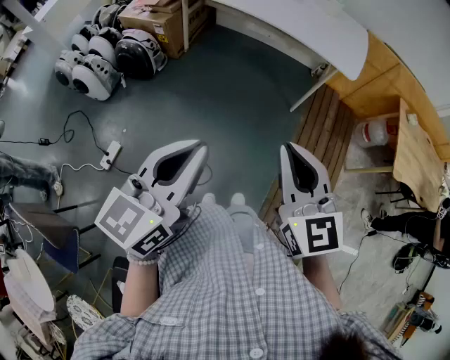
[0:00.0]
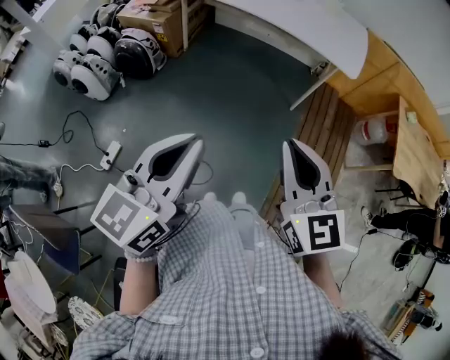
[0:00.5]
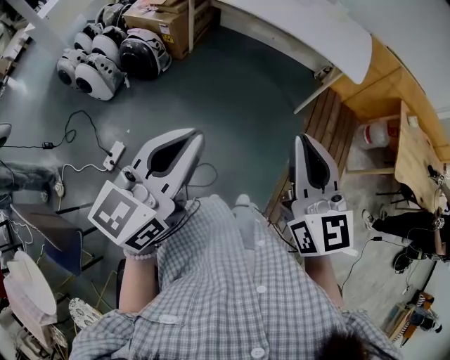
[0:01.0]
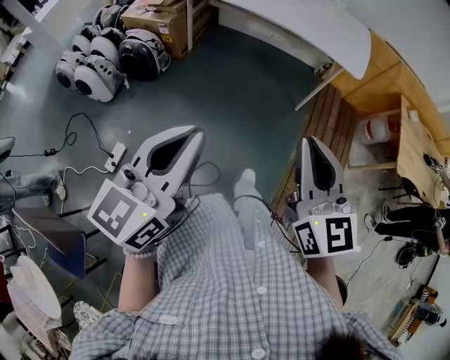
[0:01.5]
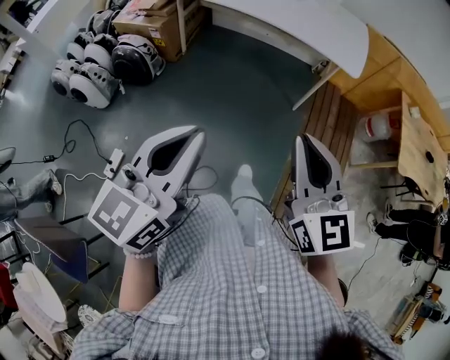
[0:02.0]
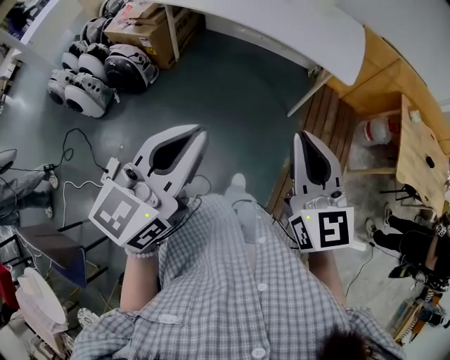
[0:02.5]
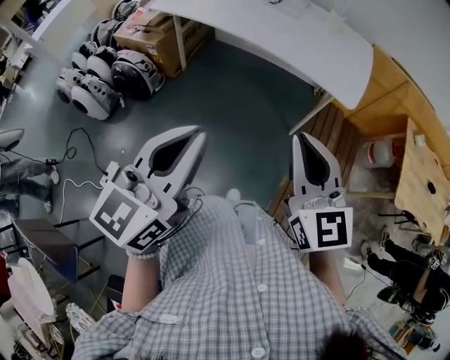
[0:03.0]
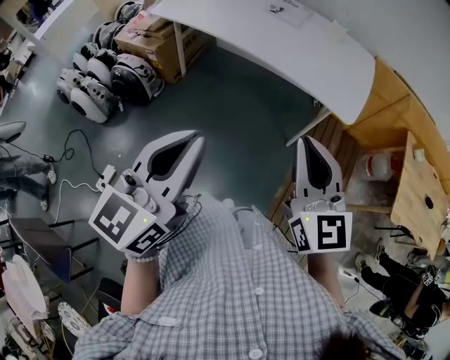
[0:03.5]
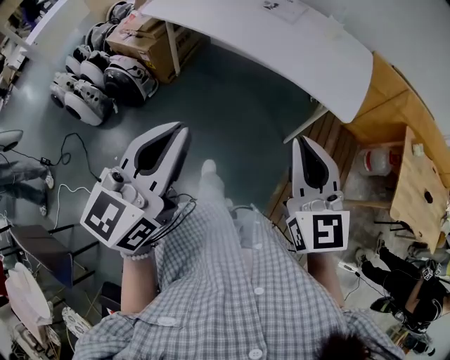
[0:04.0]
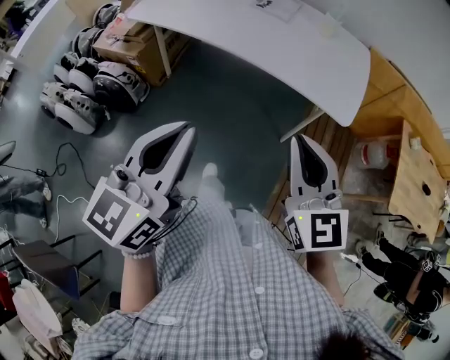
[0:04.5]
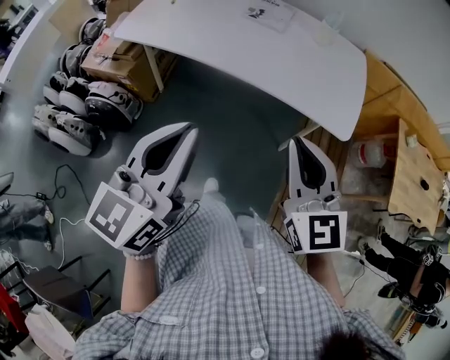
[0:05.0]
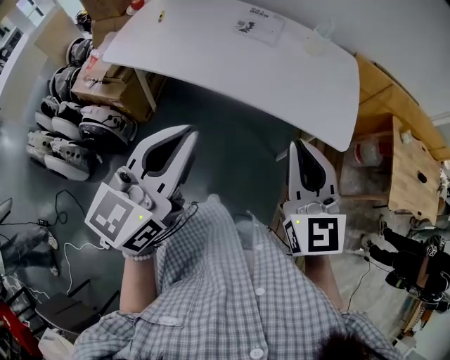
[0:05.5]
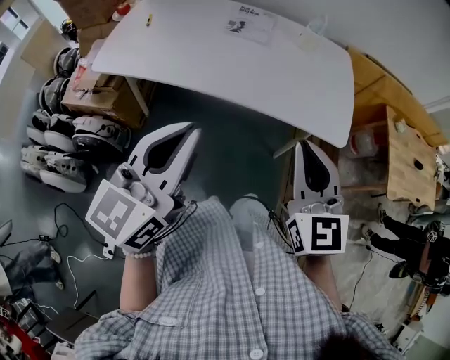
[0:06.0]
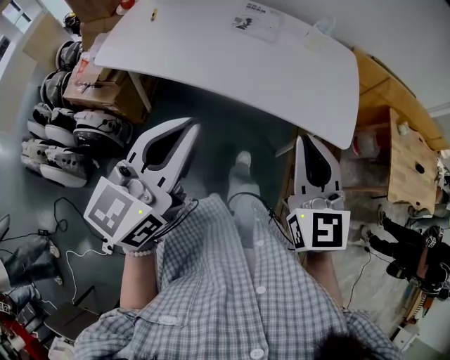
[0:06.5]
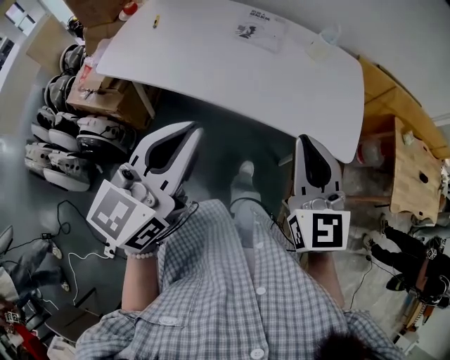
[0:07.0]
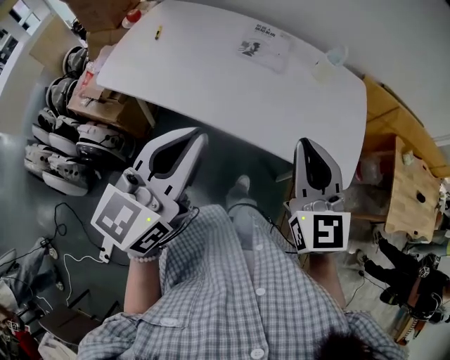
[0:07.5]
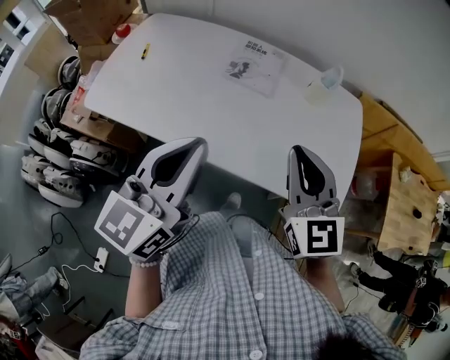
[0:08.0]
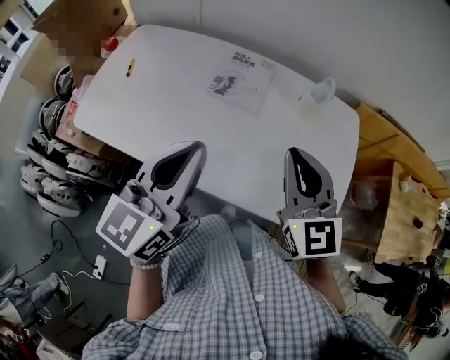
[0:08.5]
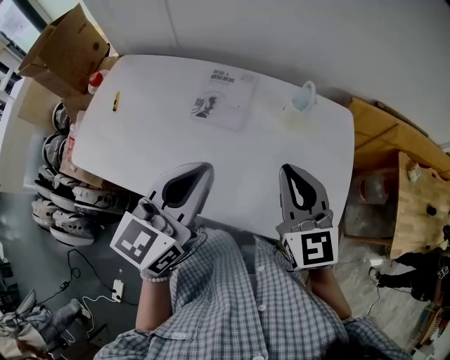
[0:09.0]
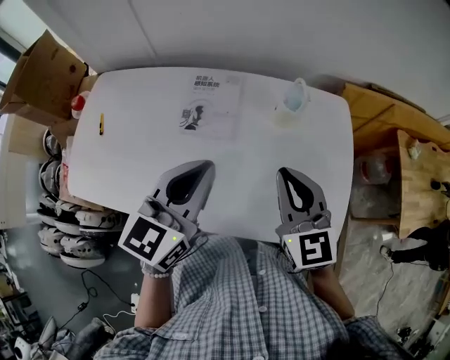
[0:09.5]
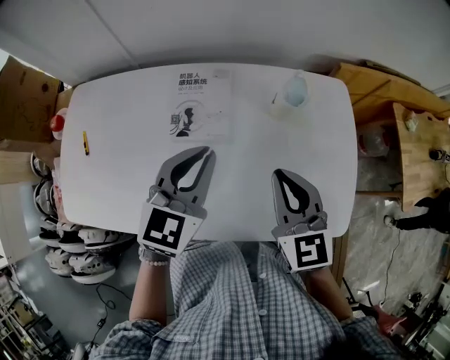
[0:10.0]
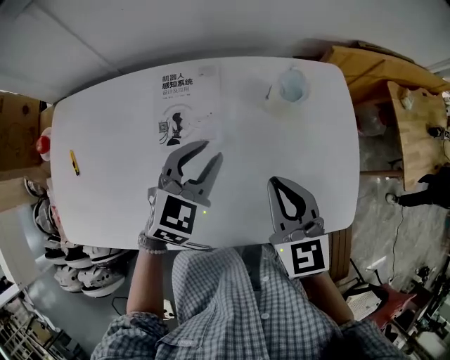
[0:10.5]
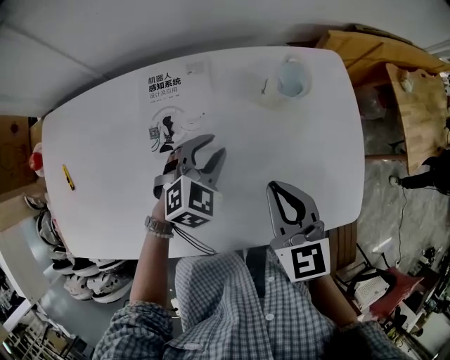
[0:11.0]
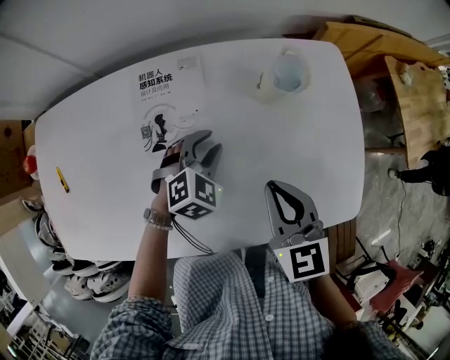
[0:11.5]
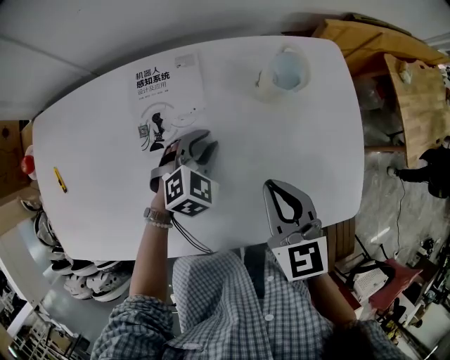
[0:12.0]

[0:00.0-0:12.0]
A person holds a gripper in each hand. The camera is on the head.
2.0 to 4.0 s: The left gripper heads forward, covering approximately 20 cm, while the right gripper is displaced forward and to the right by some 25 cm.
4.0 to 6.0 s: The right gripper is displaced forward and to the left by approximately 20 cm. Meanwhile the left gripper shifts about 25 cm forward.
6.0 to 8.0 s: The two grippers go some 20 cm forward.
8.0 to 10.0 s: The right gripper moves forward and downward, some 20 cm, and changes its angle by roughly 20 degrees. The left gripper travels forward and downward by roughly 30 cm, and changes its angle by some 30 degrees.
10.0 to 12.0 s: The left gripper shifts roughly 20 cm downward, swivels approximately 40 degrees, and opens its fingers. The right gripper heads downward, covering roughly 10 cm.

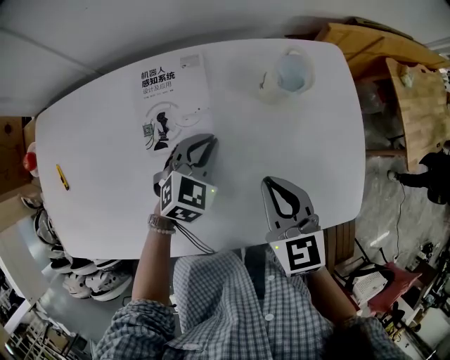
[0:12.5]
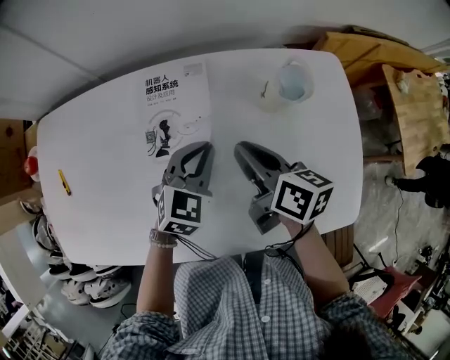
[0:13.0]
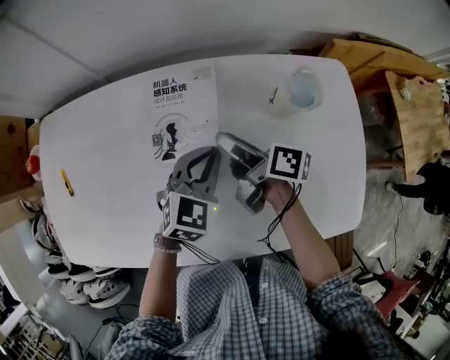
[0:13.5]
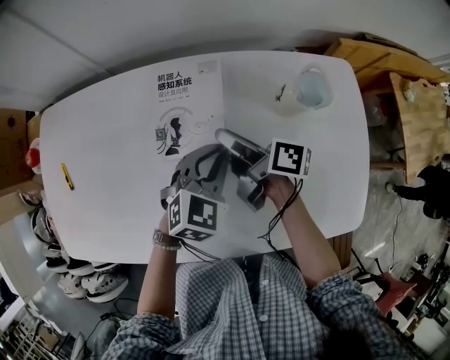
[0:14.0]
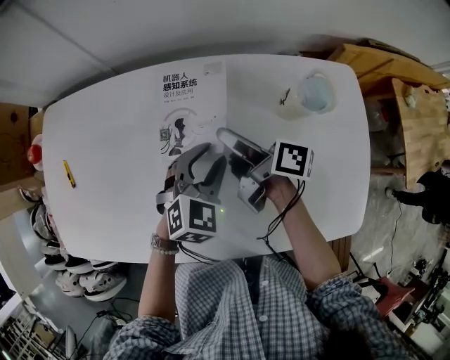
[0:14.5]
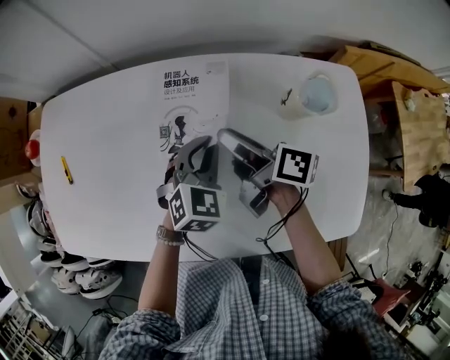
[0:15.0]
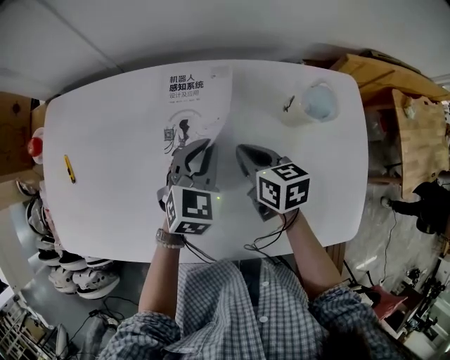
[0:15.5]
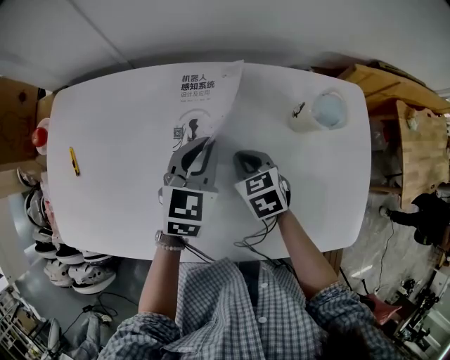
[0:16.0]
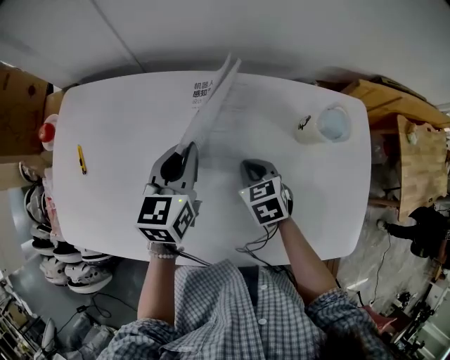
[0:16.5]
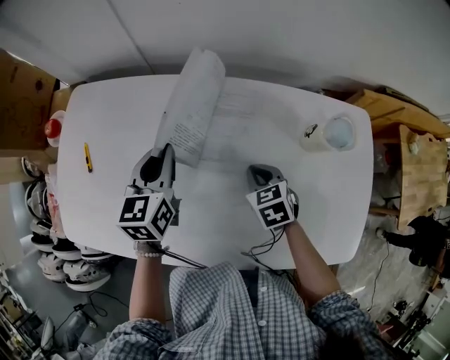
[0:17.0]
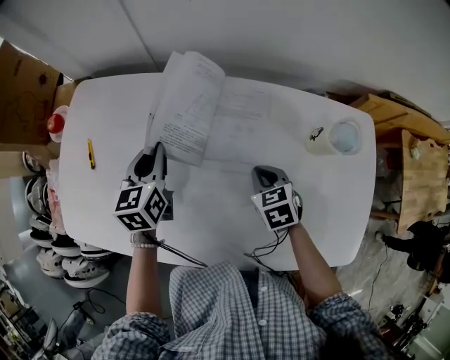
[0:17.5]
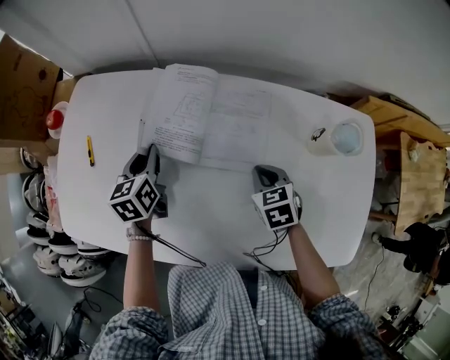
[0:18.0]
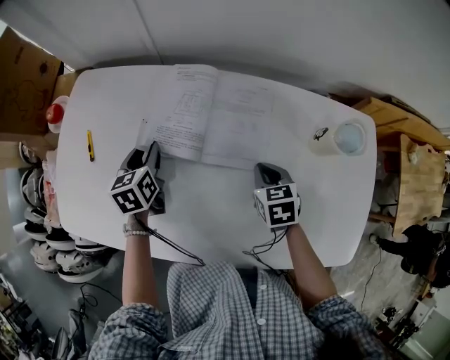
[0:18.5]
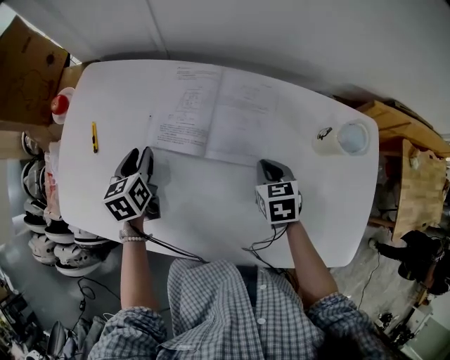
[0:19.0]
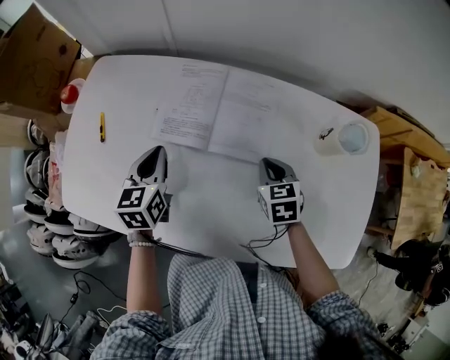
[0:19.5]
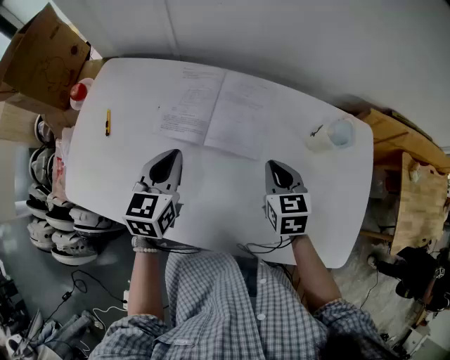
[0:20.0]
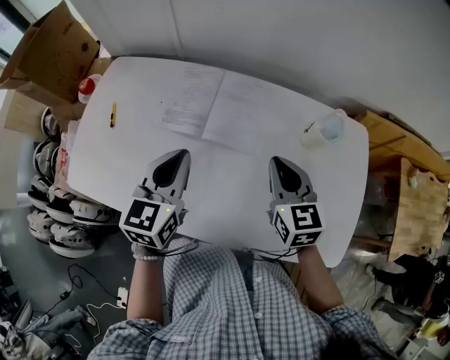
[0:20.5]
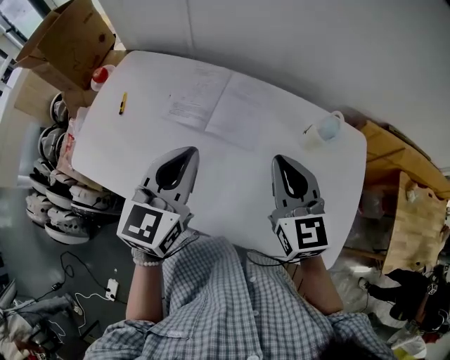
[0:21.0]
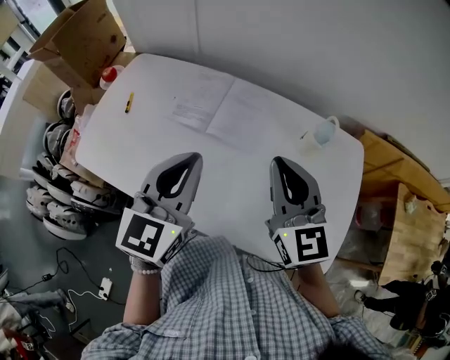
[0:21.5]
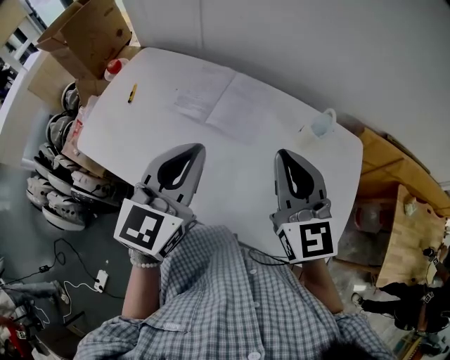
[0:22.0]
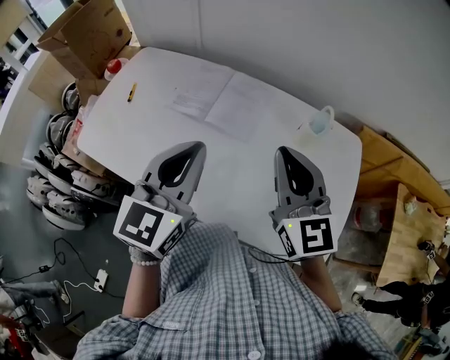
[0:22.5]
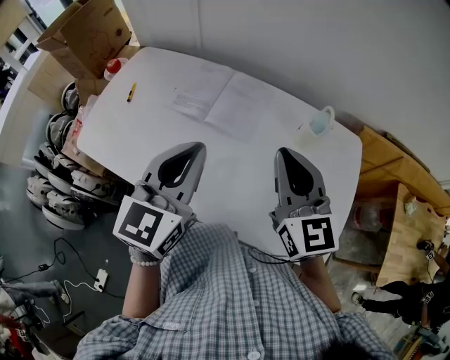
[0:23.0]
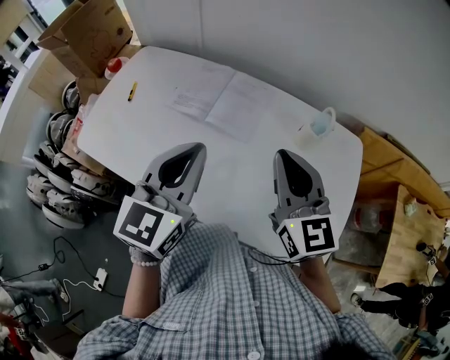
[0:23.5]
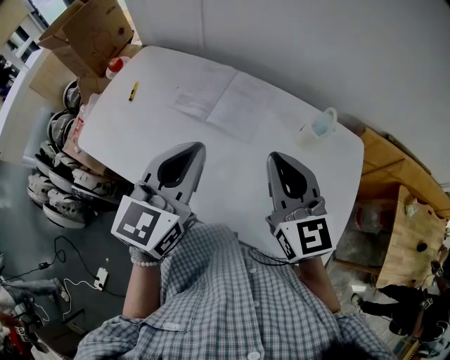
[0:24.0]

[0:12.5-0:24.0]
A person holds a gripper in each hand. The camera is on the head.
12.5 to 14.5 s: The right gripper travels forward, to the left and downward by roughly 20 cm, twists roughly 70 degrees clockwise, seen from behind, and opens its fingers; the left gripper opens.
14.5 to 16.5 s: The left gripper heads to the left, upward and forward, covering roughly 15 cm, rolls counterclockwise, seen from behind, by approximately 40 degrees, and closes up; the right gripper shifts approximately 5 cm downward, rolls counterclockwise, seen from behind, by roughly 70 degrees, and closes.
16.5 to 18.5 s: The left gripper moves to the left and downward, about 20 cm, rotates approximately 30 degrees, and opens up.
18.5 to 20.0 s: The right gripper heads upward, covering roughly 10 cm; the left gripper moves upward, backward and to the right, roughly 15 cm, changes its angle by approximately 20 degrees, and closes.
20.0 to 22.0 s: The left gripper is displaced upward, backward and to the right by roughly 25 cm, and changes its angle by roughly 20 degrees; the right gripper heads upward and backward, covering approximately 25 cm, and tips its fingers upward by some 30 degrees.
22.0 to 24.0 s: The grippers make only small movements.

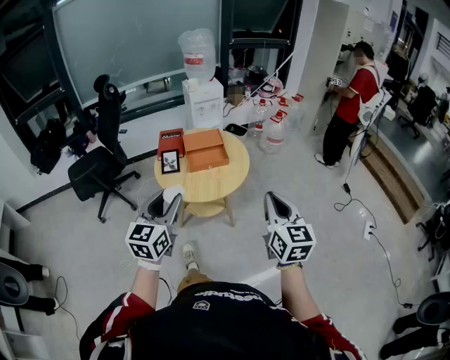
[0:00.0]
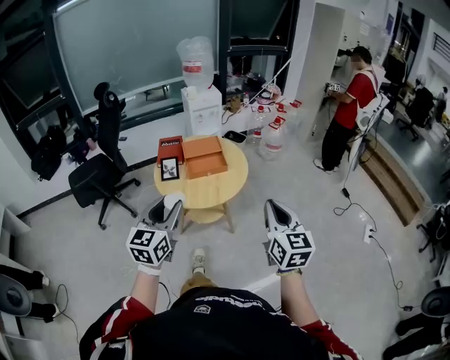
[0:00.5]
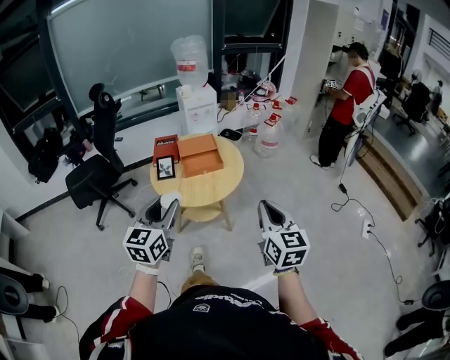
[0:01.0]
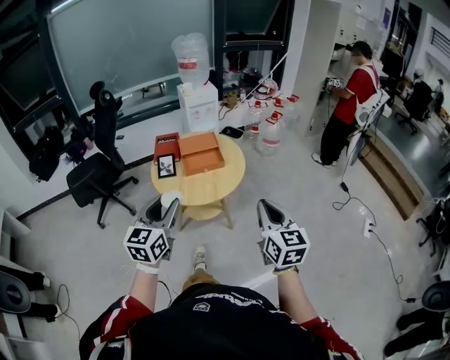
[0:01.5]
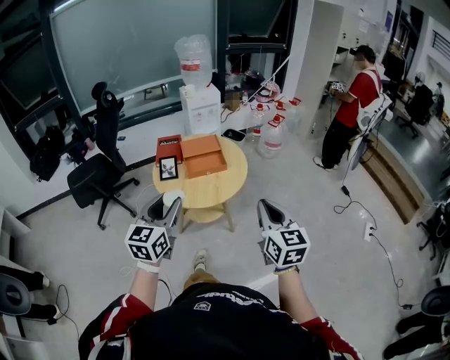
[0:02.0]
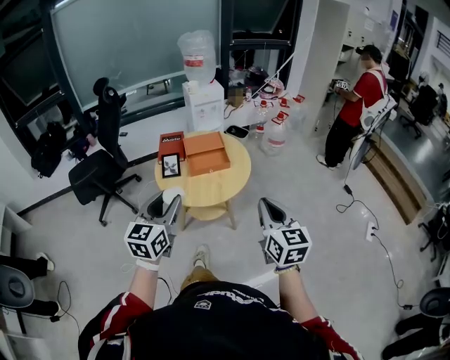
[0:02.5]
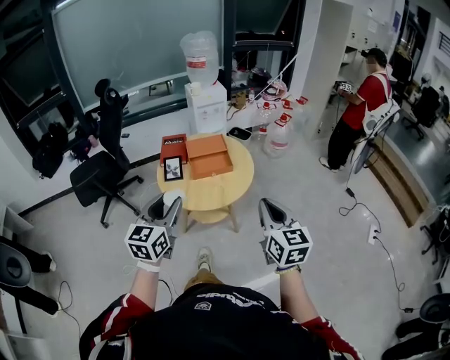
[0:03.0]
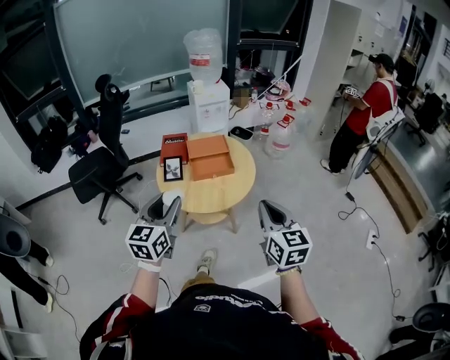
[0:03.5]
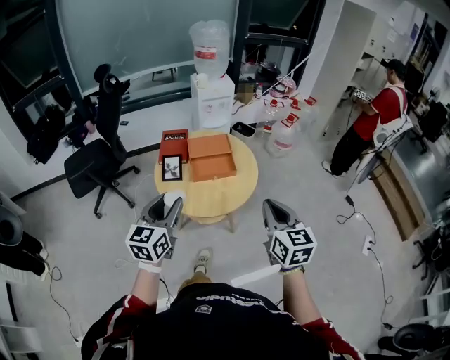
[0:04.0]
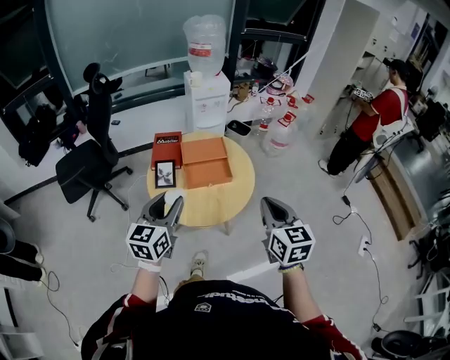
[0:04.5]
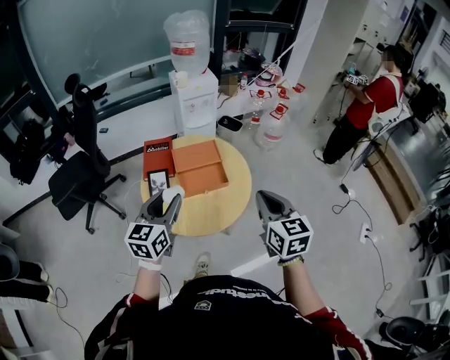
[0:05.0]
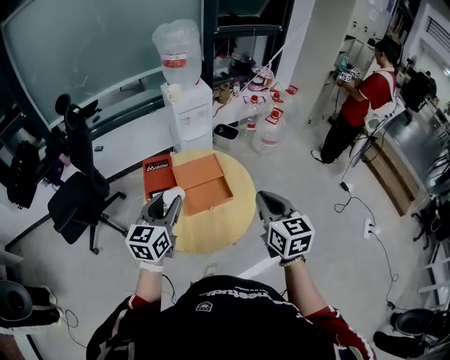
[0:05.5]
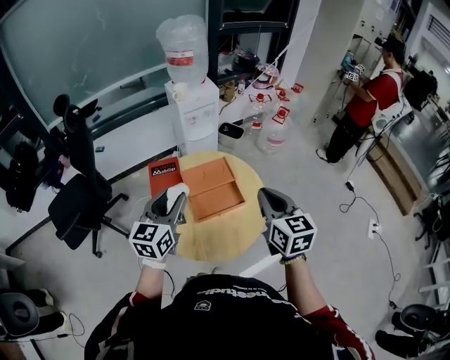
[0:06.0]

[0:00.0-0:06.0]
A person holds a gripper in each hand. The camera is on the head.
0.0 to 2.0 s: There are only small adjustments of the grippers.
2.0 to 4.0 s: Both grippers travel together forward, roughly 10 cm.
4.0 to 6.0 s: Both grippers travel together forward, approximately 25 cm.
